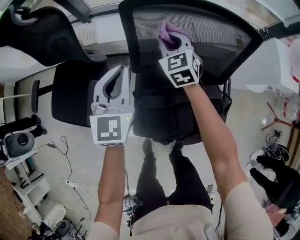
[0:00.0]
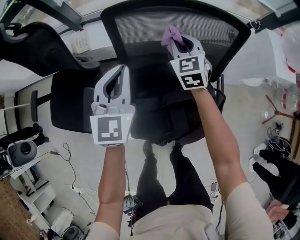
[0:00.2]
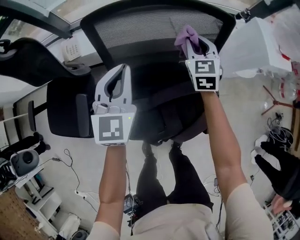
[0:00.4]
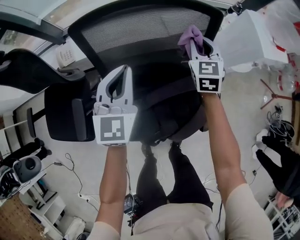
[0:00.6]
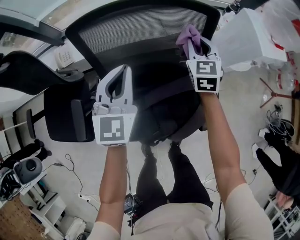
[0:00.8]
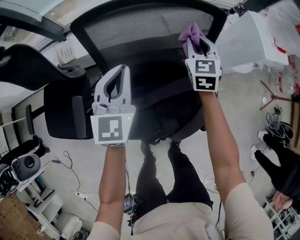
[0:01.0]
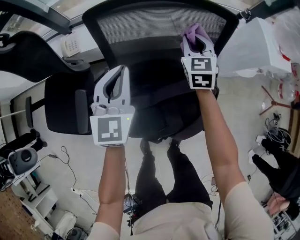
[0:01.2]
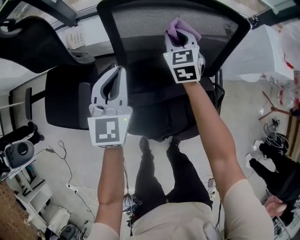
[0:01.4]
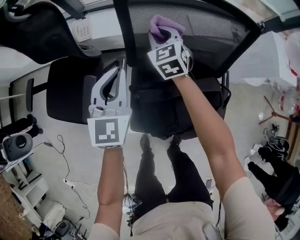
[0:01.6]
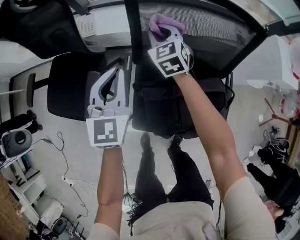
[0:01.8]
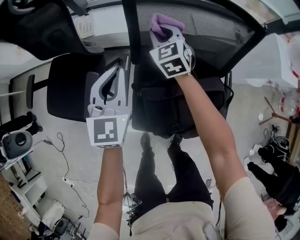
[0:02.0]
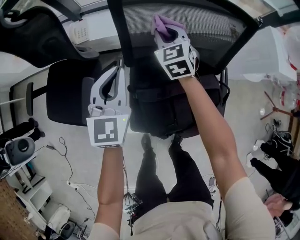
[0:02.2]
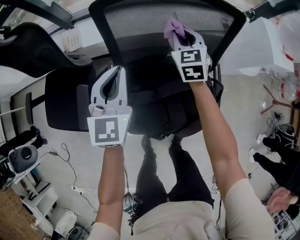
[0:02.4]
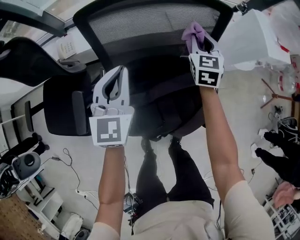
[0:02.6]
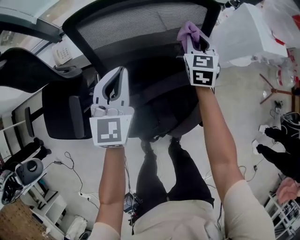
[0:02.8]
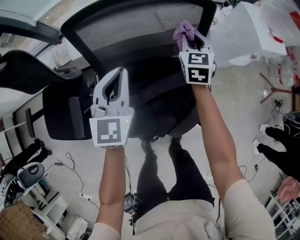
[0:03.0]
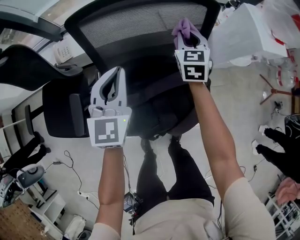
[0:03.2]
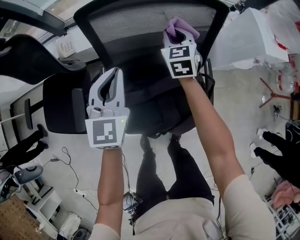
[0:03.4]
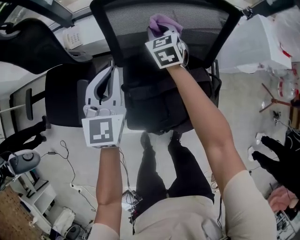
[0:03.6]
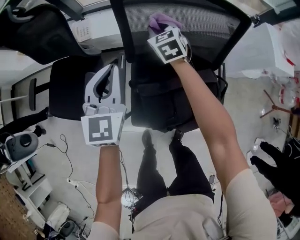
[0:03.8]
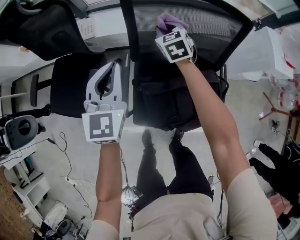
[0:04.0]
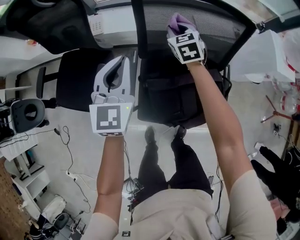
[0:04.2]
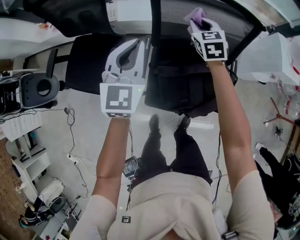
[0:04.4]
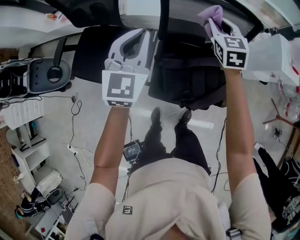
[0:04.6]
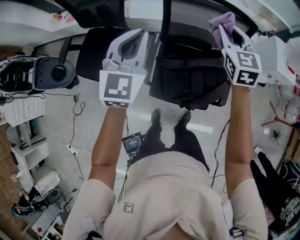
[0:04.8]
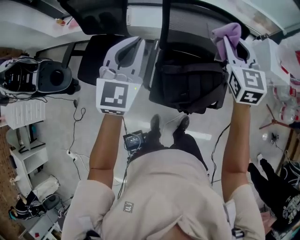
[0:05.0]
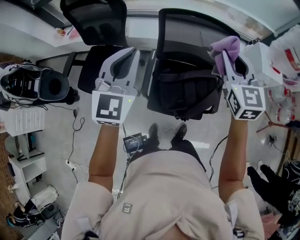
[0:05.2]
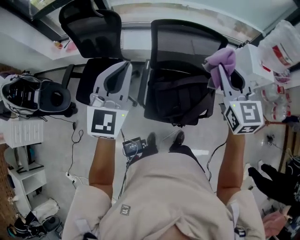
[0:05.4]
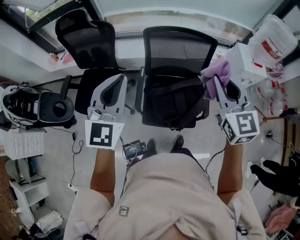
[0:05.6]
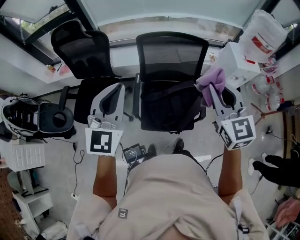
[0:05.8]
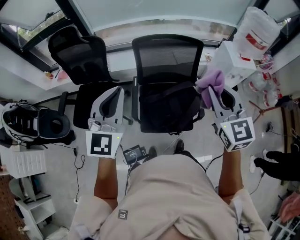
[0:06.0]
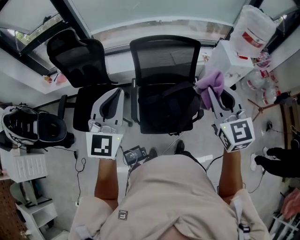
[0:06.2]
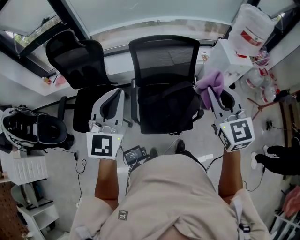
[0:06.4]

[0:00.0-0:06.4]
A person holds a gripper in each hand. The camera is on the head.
0:00.0 to 0:01.6: The right gripper moves approximately 30 cm to the right and comes back, while the left gripper moves roughly 15 cm to the right and comes back.
0:01.6 to 0:03.2: The right gripper moves to the right, some 25 cm, and turns by about 30 degrees; the left gripper is displaced to the right by roughly 15 cm.
0:03.2 to 0:04.8: The grippers both shift upward, to the left and backward by roughly 30 cm. The right gripper swivels approximately 20 degrees.
0:04.8 to 0:06.4: The right gripper heads backward and upward, covering about 35 cm; the left gripper is displaced backward and upward by about 25 cm.

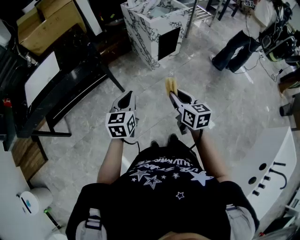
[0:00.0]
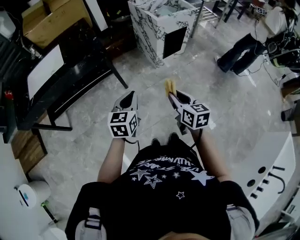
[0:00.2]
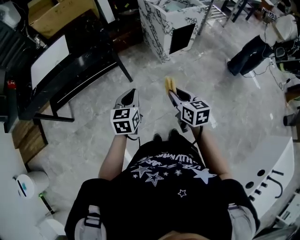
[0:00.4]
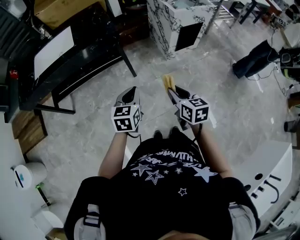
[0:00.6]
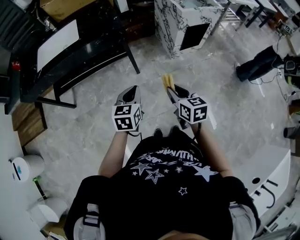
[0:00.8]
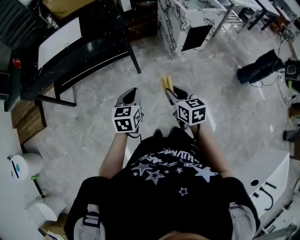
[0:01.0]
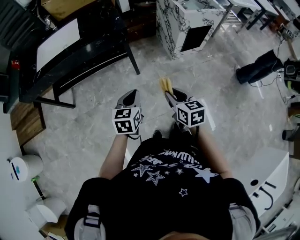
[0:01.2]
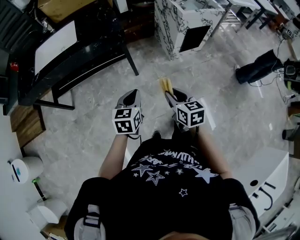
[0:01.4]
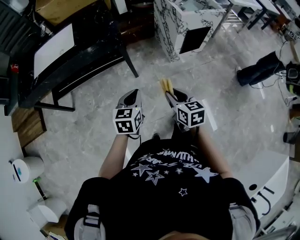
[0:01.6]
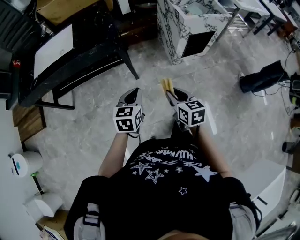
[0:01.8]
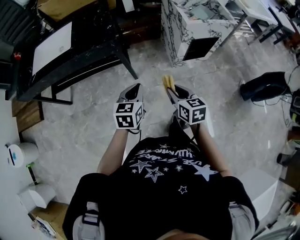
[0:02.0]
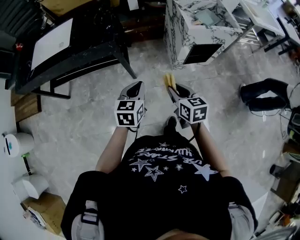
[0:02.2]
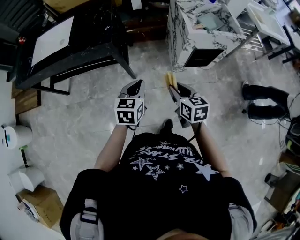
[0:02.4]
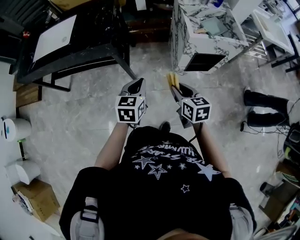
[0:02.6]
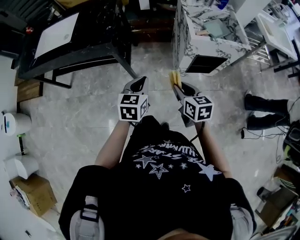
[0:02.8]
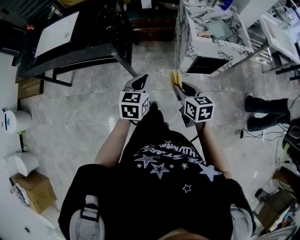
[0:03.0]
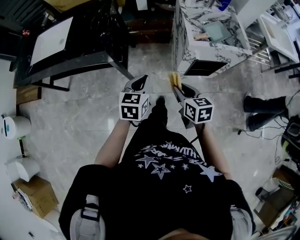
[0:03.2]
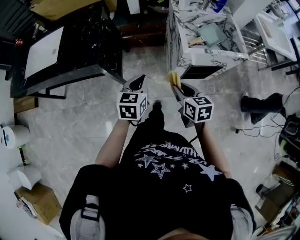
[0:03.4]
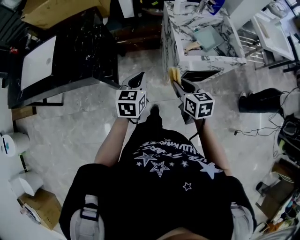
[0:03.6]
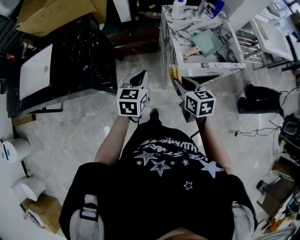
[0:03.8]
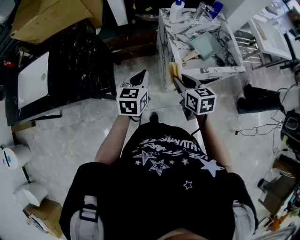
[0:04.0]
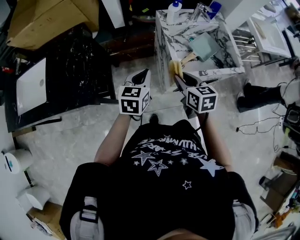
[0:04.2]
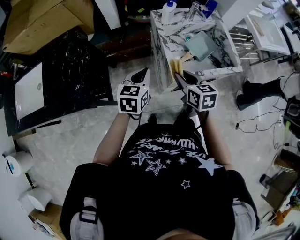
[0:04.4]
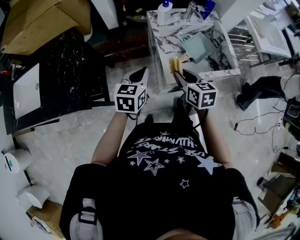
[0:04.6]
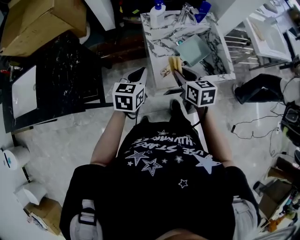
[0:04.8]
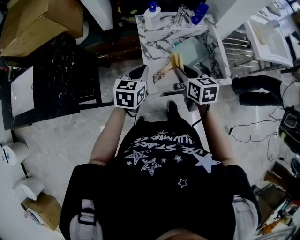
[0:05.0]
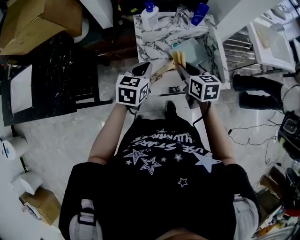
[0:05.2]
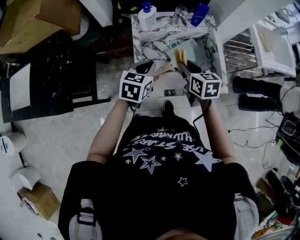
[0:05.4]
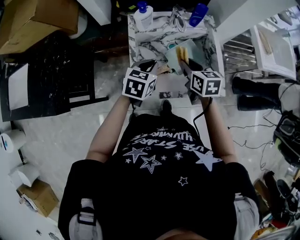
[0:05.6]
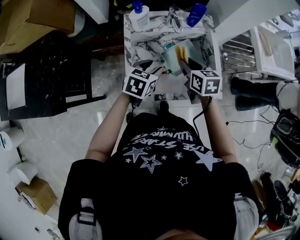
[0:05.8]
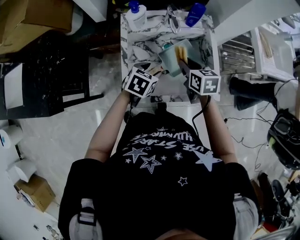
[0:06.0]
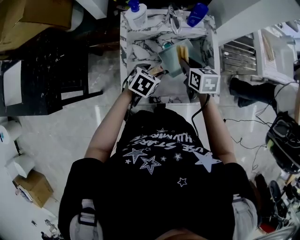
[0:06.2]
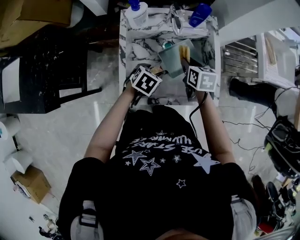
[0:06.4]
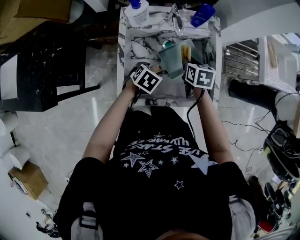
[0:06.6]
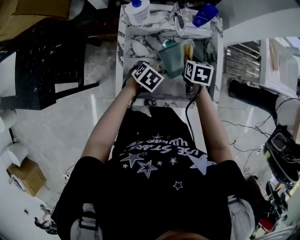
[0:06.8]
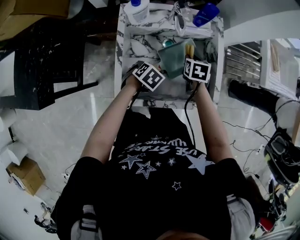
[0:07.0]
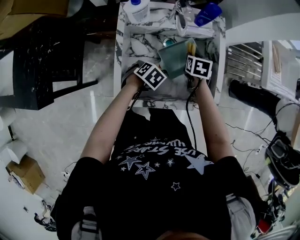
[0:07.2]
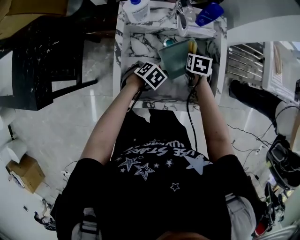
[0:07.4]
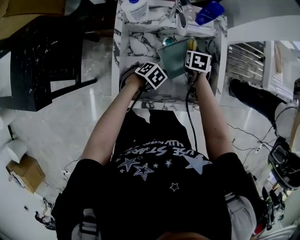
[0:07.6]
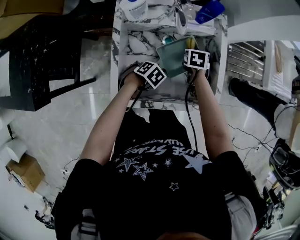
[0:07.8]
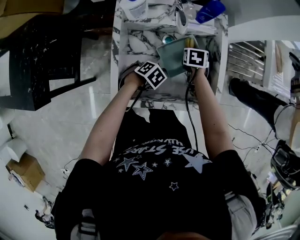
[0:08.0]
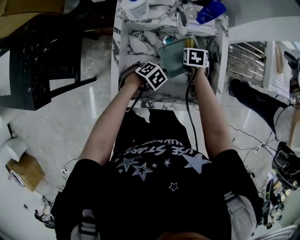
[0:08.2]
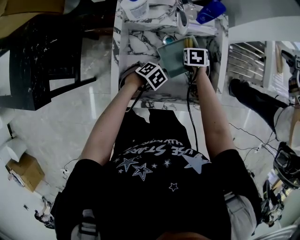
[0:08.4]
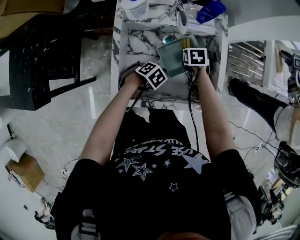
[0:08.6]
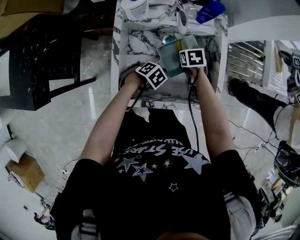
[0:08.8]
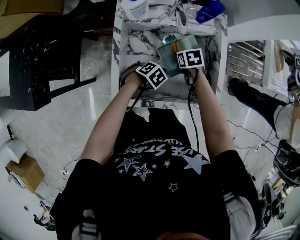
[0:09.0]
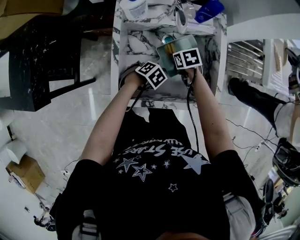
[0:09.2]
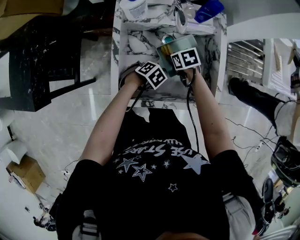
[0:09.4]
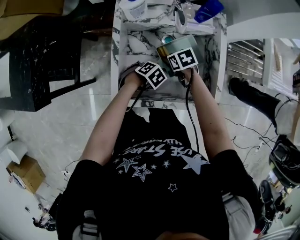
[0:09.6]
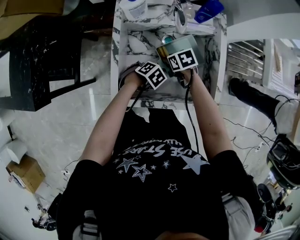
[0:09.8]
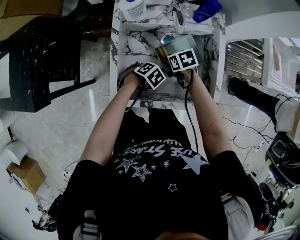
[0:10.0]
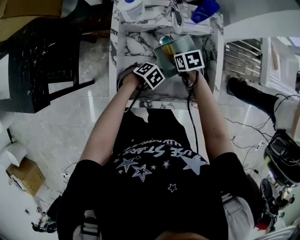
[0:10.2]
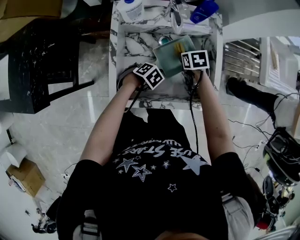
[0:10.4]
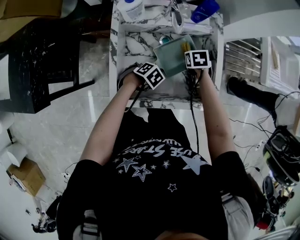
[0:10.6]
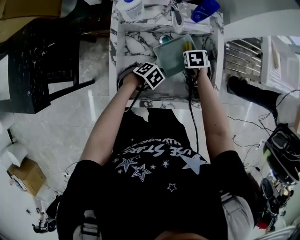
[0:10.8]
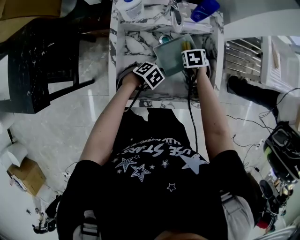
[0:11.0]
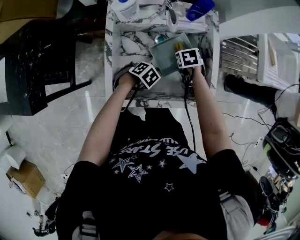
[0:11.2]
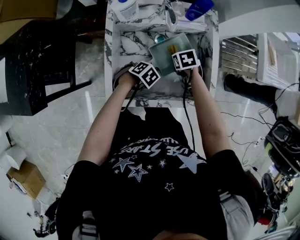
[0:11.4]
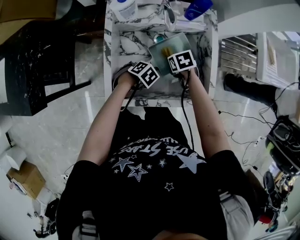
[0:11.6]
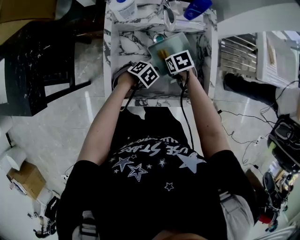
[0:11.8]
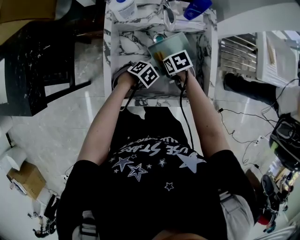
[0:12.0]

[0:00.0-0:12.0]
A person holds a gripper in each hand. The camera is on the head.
0:00.0 to 0:01.6: The left gripper goes roughly 10 cm downward and to the left, while the right gripper moves to the left, downward and forward, some 10 cm.
0:01.6 to 0:03.0: The two grippers go approximately 30 cm to the right and forward.
0:03.0 to 0:04.4: Both grippers move forward, roughly 30 cm.
0:04.4 to 0:06.0: The left gripper moves to the right, forward and downward, approximately 30 cm, changes its angle by roughly 20 degrees, and opens its fingers. Meanwhile the right gripper shifts approximately 30 cm to the right and forward.
0:06.0 to 0:07.6: Both grippers travel together downward, approximately 15 cm. The left gripper tilts its fingers about 30 degrees downward, while the right gripper turns by some 30 degrees.
0:07.6 to 0:09.0: The left gripper closes; the right gripper changes place by approximately 10 cm, and rotates about 20 degrees.
0:10.4 to 0:12.0: The right gripper shifts by some 10 cm.

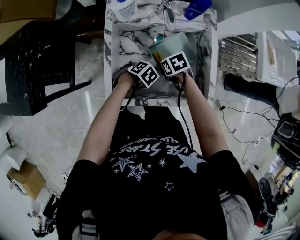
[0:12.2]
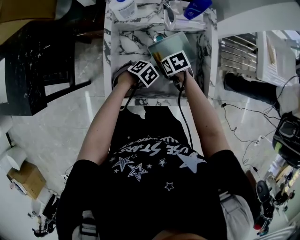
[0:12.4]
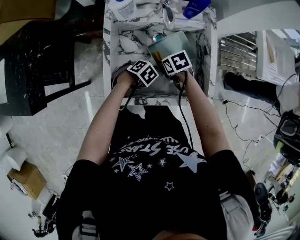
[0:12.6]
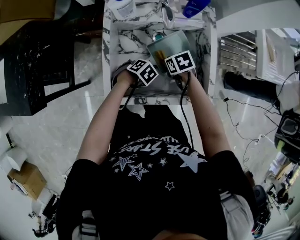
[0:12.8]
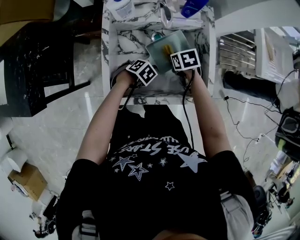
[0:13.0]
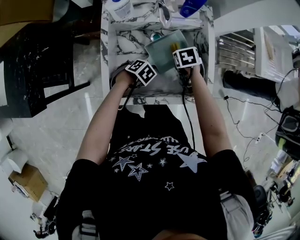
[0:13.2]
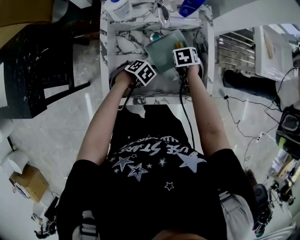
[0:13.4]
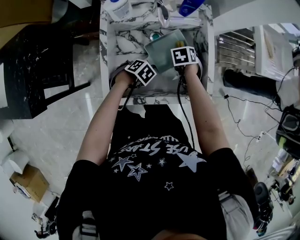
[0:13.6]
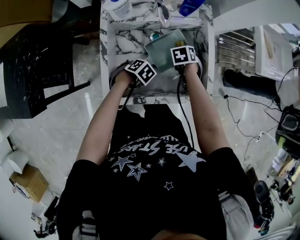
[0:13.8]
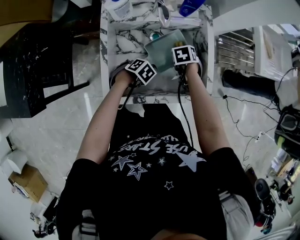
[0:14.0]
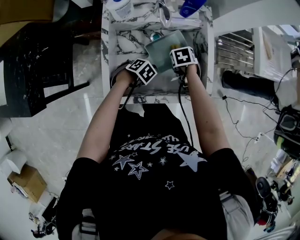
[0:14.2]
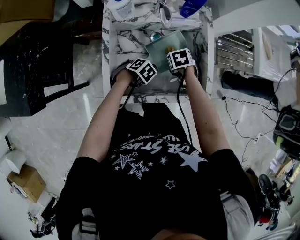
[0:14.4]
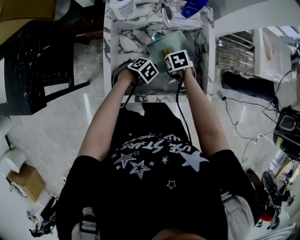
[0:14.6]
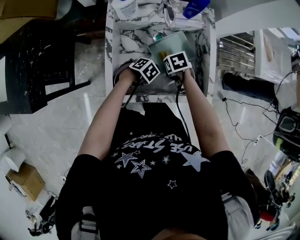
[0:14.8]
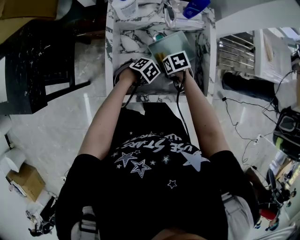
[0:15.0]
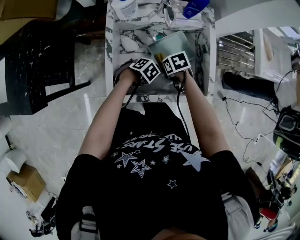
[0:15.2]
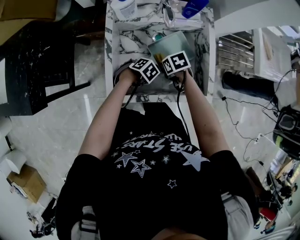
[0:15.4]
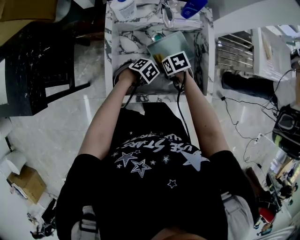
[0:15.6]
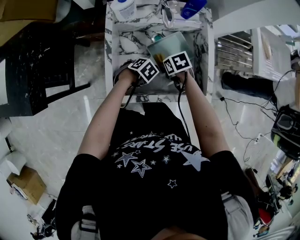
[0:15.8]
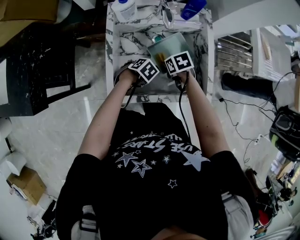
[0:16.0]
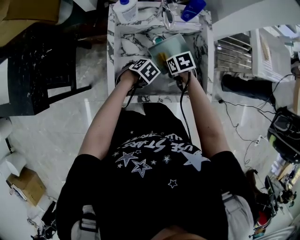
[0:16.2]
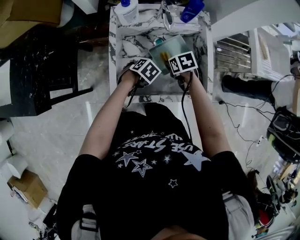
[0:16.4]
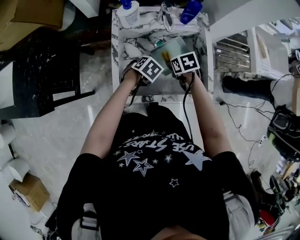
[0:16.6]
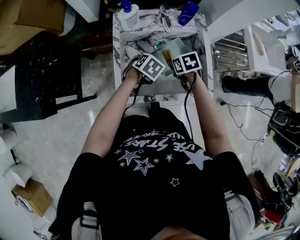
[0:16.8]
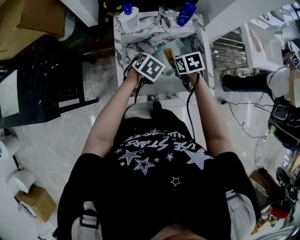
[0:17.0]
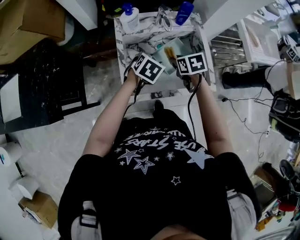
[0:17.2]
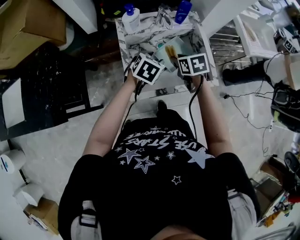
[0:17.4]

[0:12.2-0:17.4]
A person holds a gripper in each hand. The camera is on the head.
0:12.2 to 0:14.0: The right gripper moves approximately 15 cm, and changes its angle by roughly 30 degrees.
0:14.0 to 0:15.6: The right gripper shifts by about 15 cm, and swivels some 30 degrees.
0:15.6 to 0:17.4: Both grippers travel together upward, approximately 20 cm. The right gripper swivels roughly 30 degrees; the left gripper angles its fingers upward, by approximately 40 degrees.
